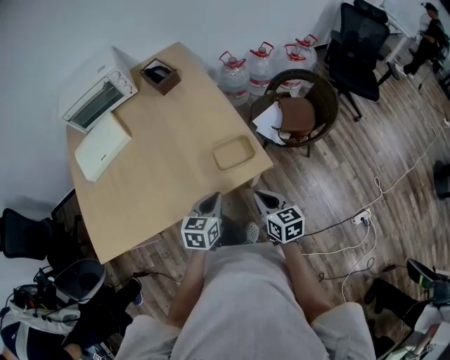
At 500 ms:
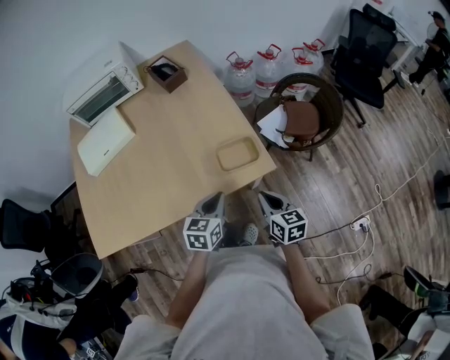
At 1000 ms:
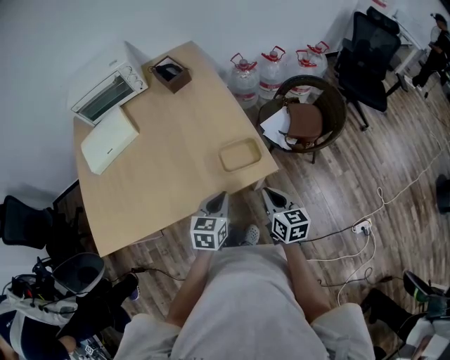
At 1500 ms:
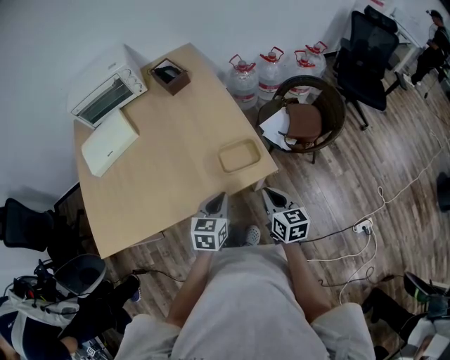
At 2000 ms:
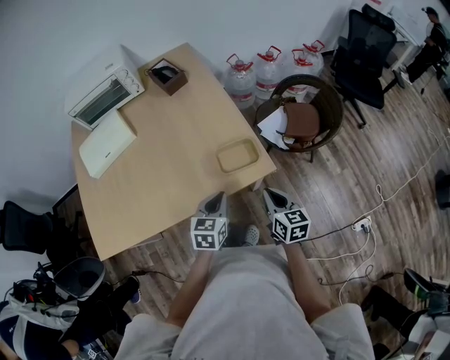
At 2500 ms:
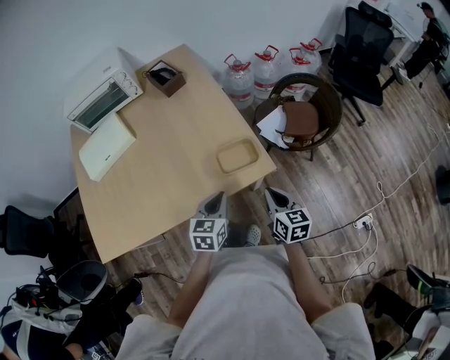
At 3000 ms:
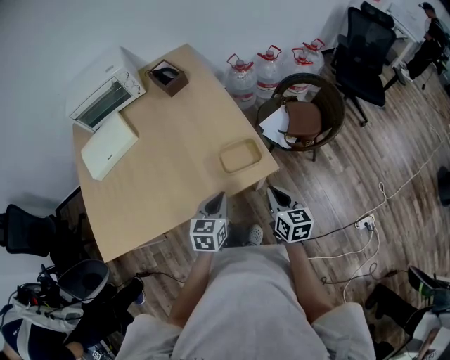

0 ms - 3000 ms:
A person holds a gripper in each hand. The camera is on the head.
0 ms - 3000 ms: There are only small adjustments of the grippers.

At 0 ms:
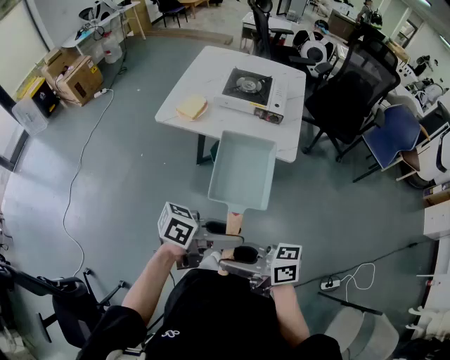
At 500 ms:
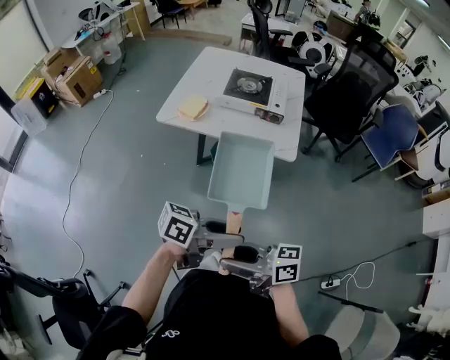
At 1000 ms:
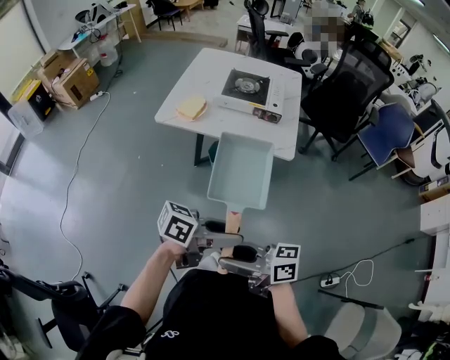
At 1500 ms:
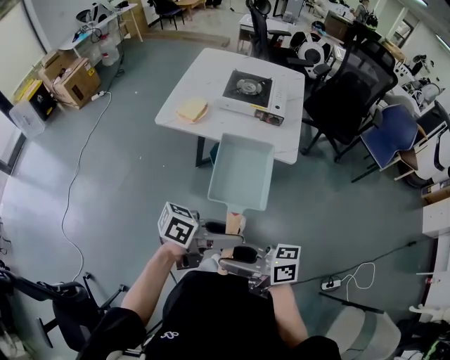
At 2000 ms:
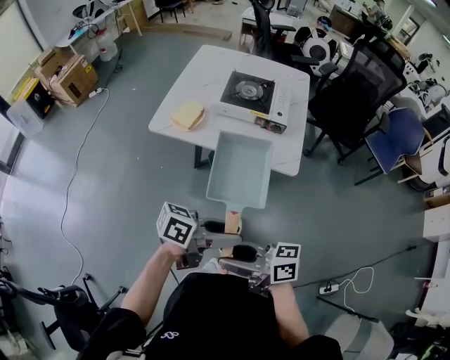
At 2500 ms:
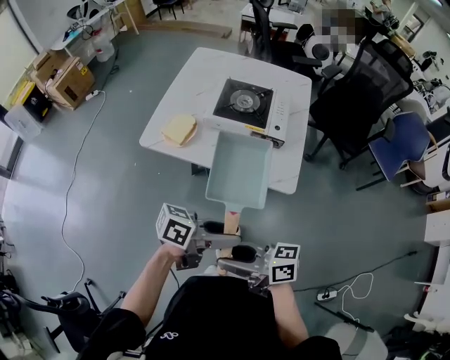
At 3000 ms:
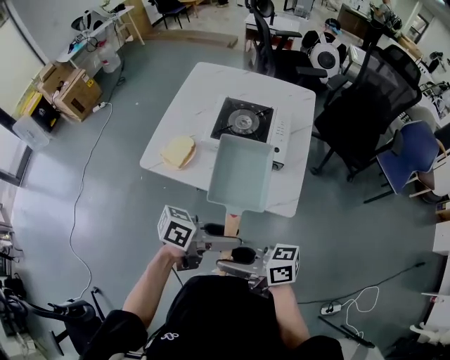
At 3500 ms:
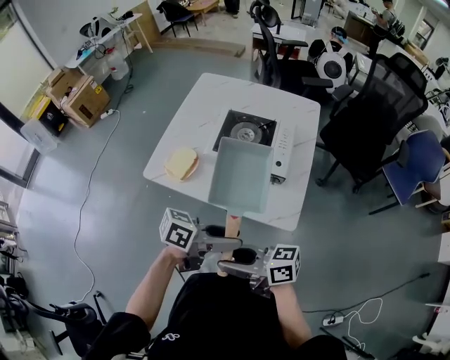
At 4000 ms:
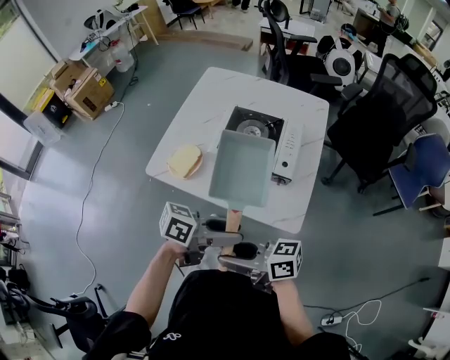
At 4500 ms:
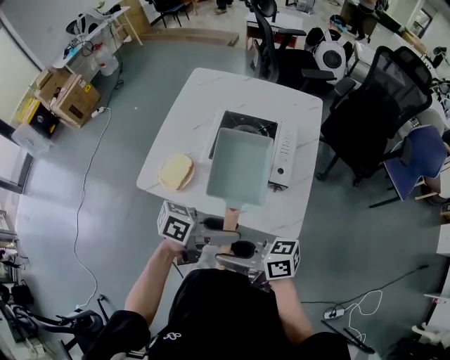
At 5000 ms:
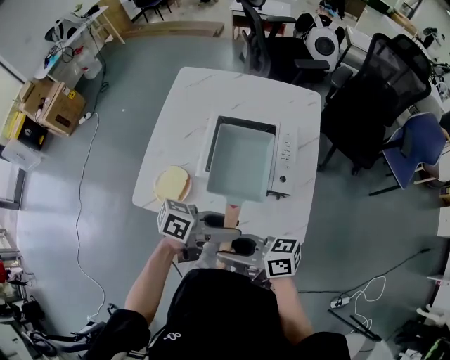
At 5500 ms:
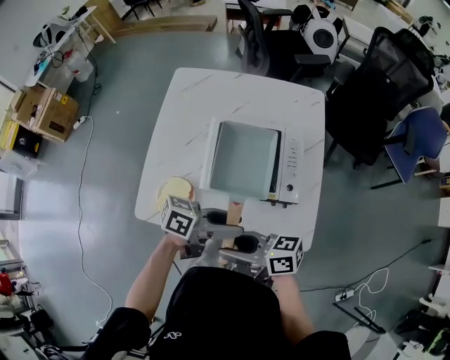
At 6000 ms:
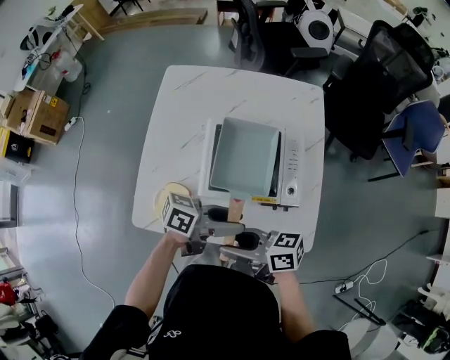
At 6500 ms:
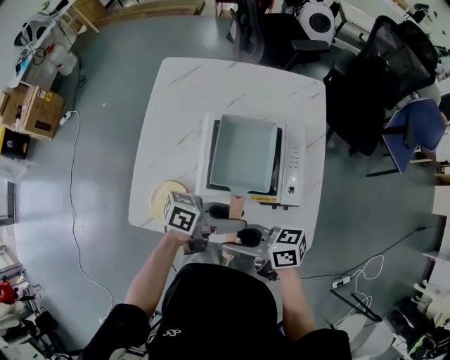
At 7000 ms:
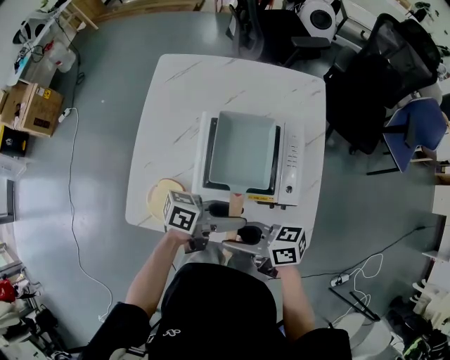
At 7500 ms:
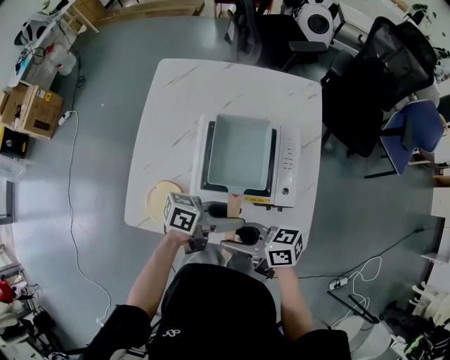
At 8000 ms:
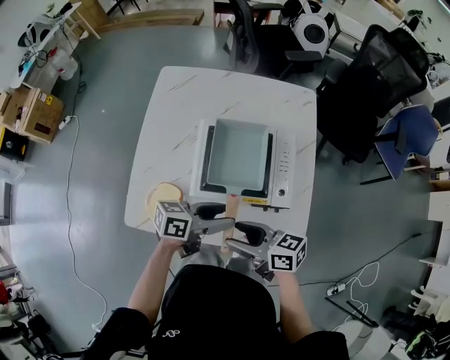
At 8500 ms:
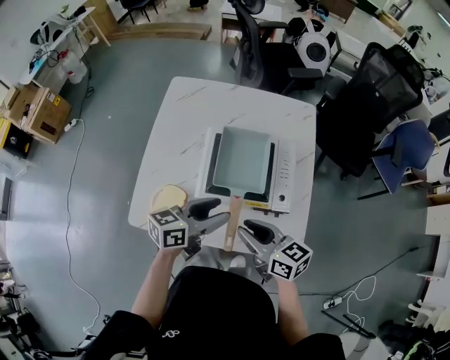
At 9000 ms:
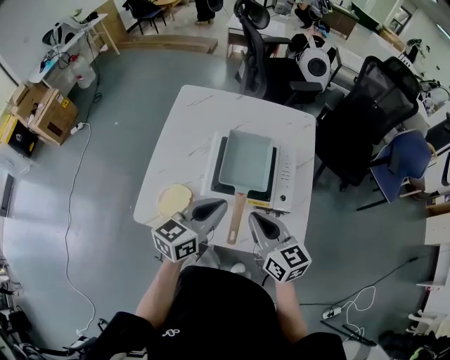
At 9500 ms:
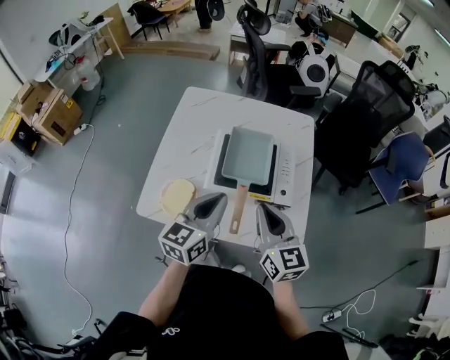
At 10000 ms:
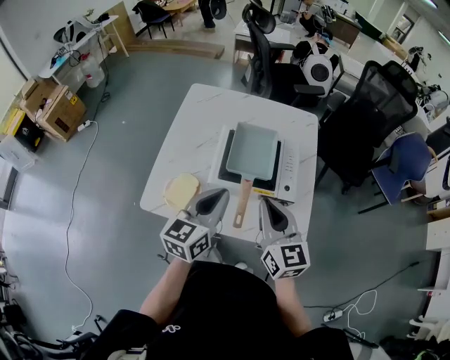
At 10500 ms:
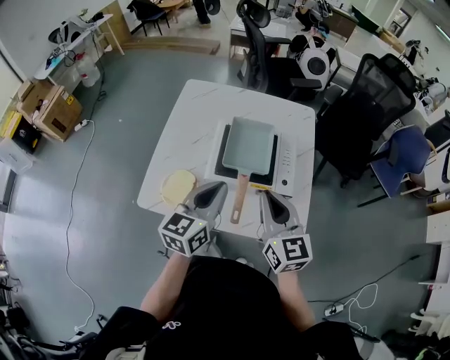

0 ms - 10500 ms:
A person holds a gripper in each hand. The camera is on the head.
0 ms - 2000 ms: The left gripper moves roughly 10 cm. Meanwhile the right gripper ends up some 10 cm from where it was.
2000 ms - 4000 ms: The right gripper moves about 25 cm, while the left gripper moves roughly 25 cm.
4000 ms - 6500 ms: The right gripper moves approximately 25 cm. The left gripper ends up about 20 cm from where it was.
6500 ms - 8500 ms: The left gripper changes place by approximately 5 cm, and turns by roughly 40 degrees; the right gripper changes place by about 5 cm, swivels roughly 30 degrees, and closes its fingers.
8500 ms - 10500 ms: The grippers both shift upward by approximately 10 cm. The right gripper rotates some 40 degrees, and closes. Meanwhile the left gripper swivels about 30 degrees, and closes up.

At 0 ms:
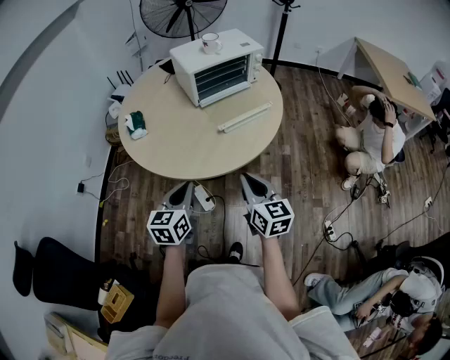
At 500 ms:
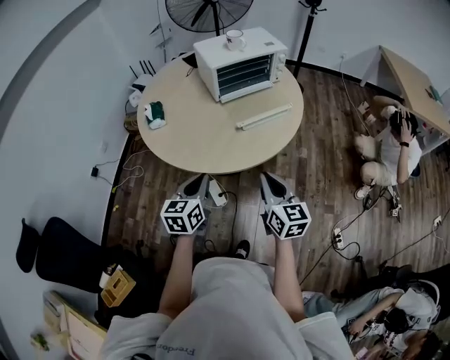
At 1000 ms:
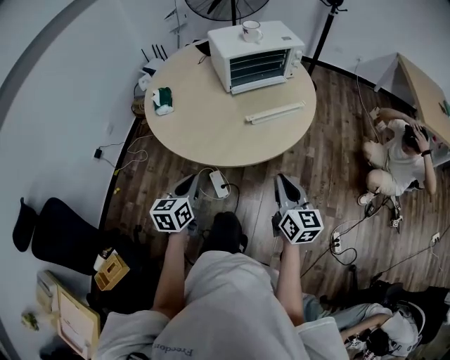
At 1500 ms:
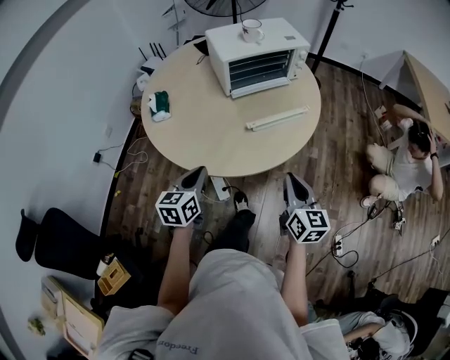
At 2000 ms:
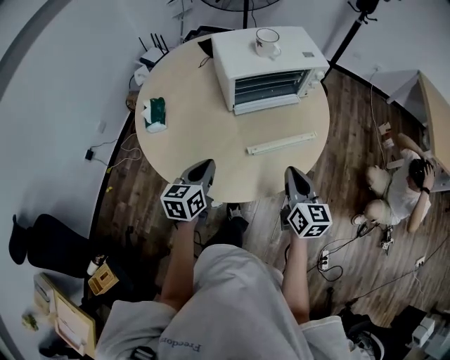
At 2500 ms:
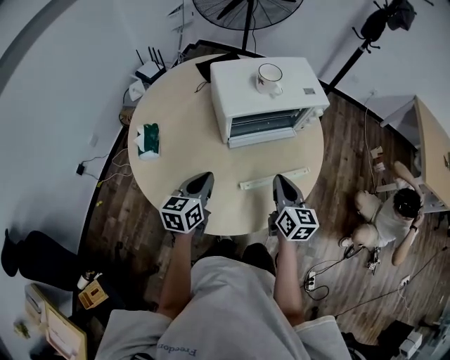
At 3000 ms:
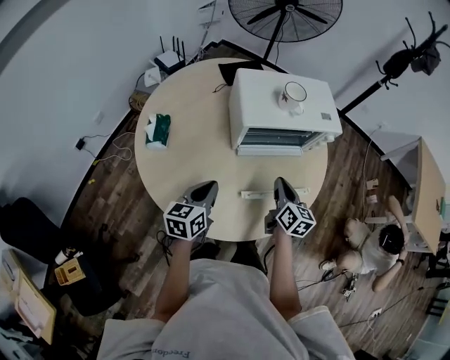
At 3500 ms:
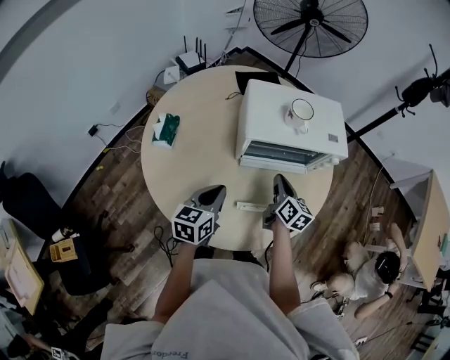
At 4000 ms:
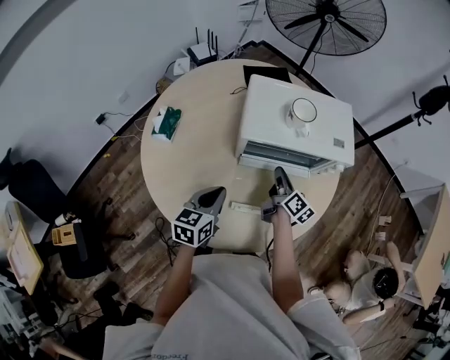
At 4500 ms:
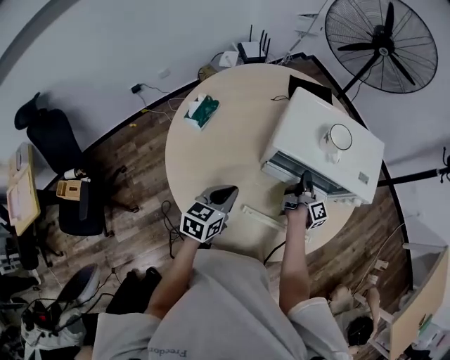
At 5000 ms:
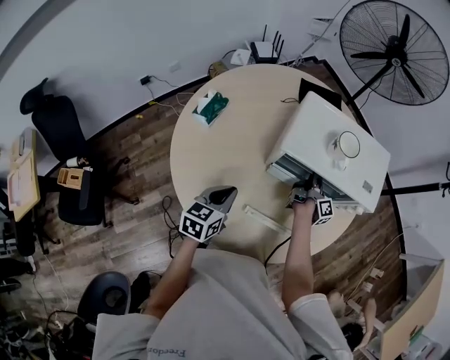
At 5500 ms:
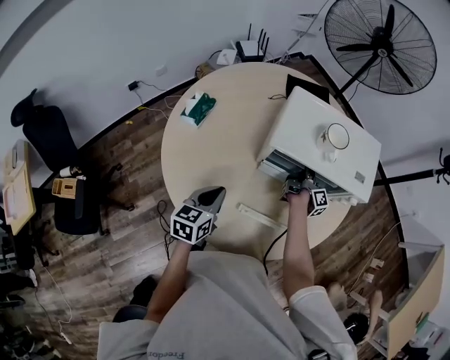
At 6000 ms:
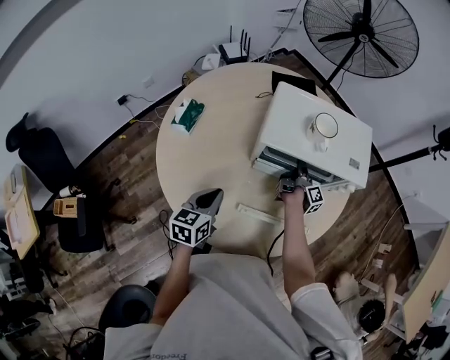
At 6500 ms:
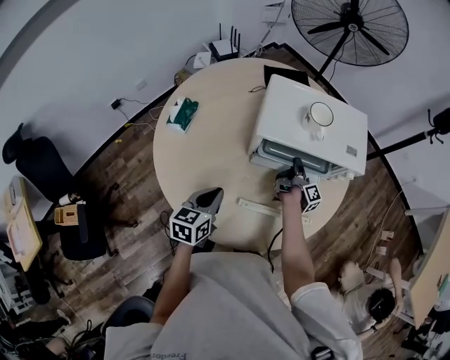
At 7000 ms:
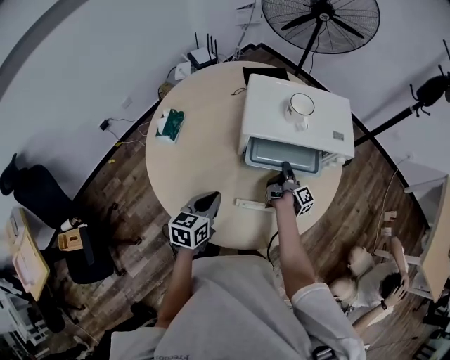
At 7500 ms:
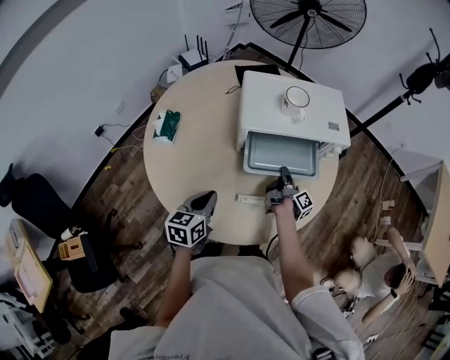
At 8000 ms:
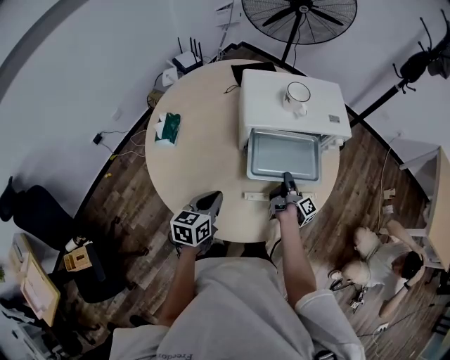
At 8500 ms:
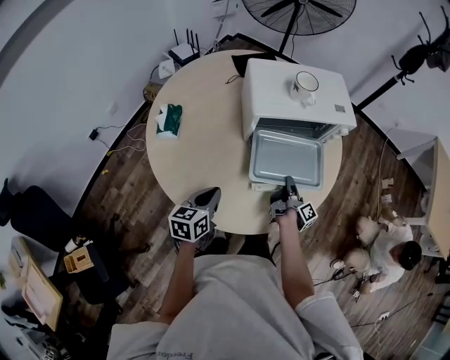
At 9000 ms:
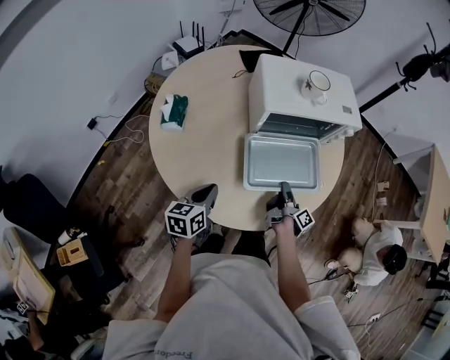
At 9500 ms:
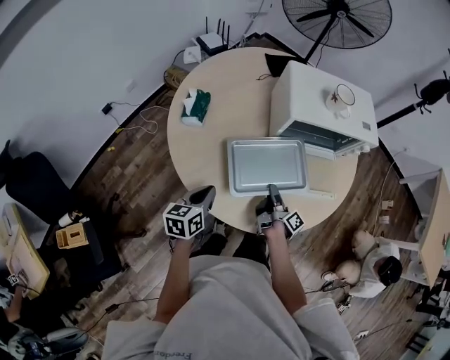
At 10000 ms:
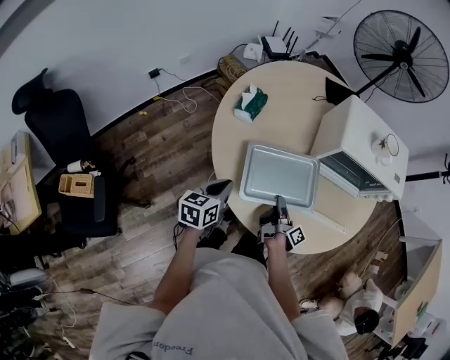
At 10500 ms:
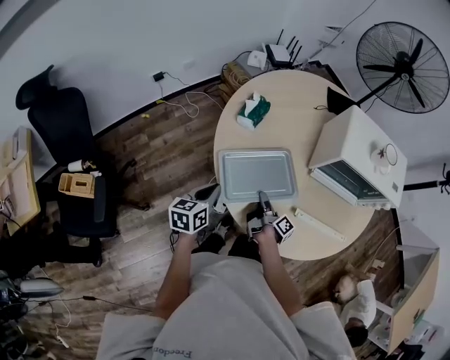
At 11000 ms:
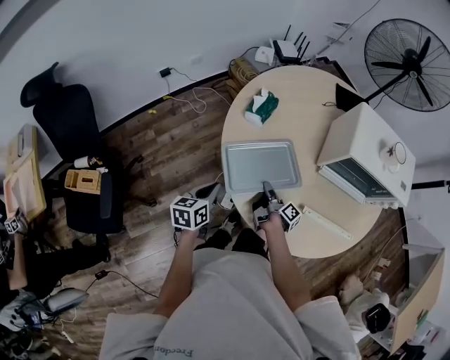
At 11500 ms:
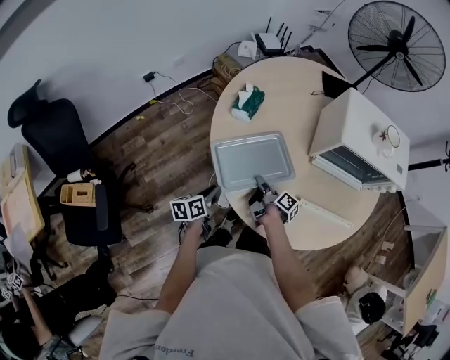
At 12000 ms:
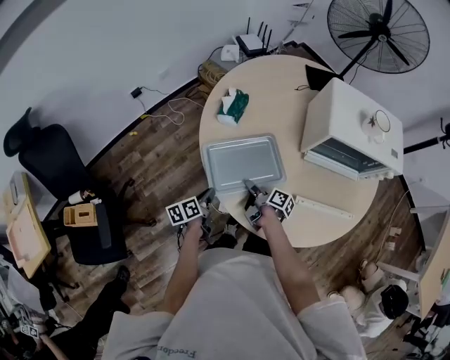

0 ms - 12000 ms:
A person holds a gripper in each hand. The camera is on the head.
0 ms - 2000 ms: The left gripper shifts by roughly 20 cm.
2000 ms - 4000 ms: The left gripper ends up roughly 15 cm from where it was.
8000 ms - 10000 ms: The left gripper changes place by some 20 cm.
10000 ms - 12000 ms: The left gripper is displaced downward by about 15 cm, and swivels roughly 30 degrees.

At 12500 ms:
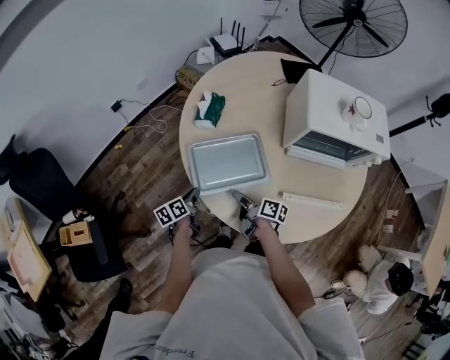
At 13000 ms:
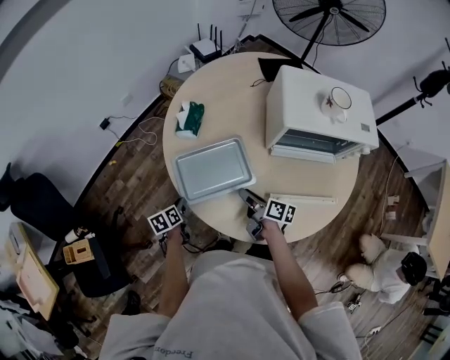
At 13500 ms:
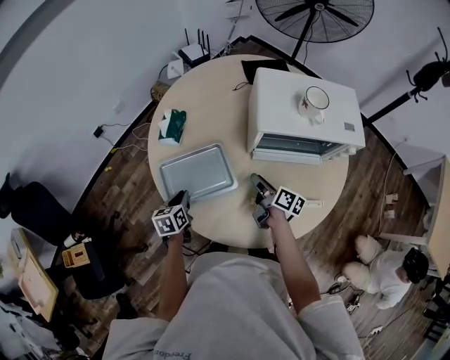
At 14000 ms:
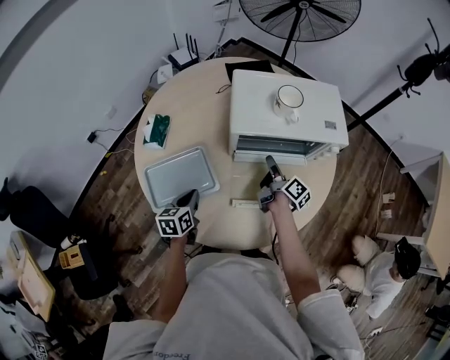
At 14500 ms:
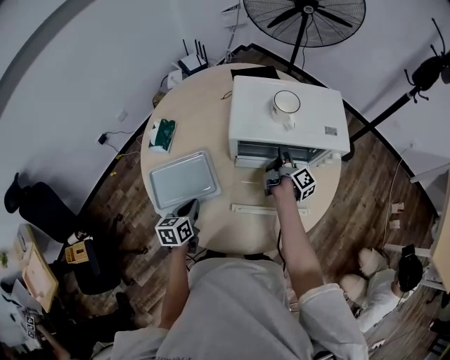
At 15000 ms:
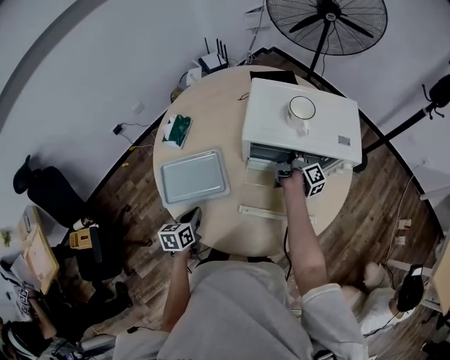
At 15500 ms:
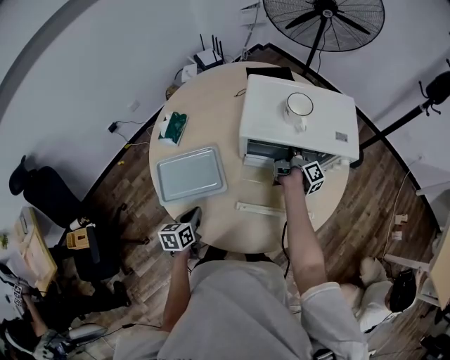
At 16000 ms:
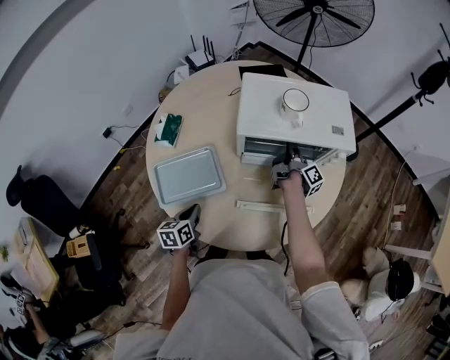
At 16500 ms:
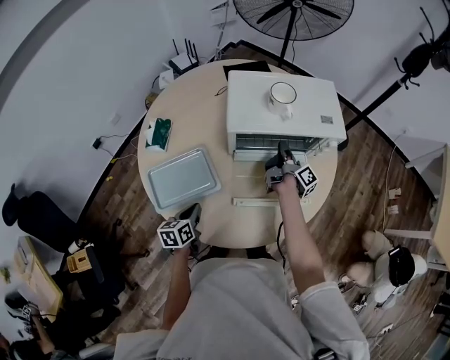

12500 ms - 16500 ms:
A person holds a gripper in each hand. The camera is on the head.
12500 ms - 14500 ms: The left gripper shifts by about 25 cm, and rotates roughly 30 degrees.
